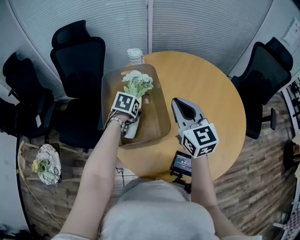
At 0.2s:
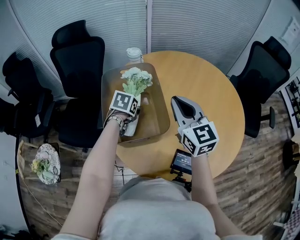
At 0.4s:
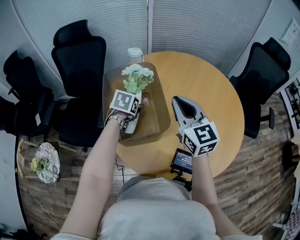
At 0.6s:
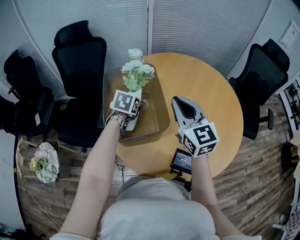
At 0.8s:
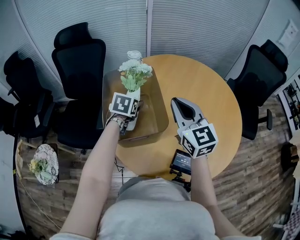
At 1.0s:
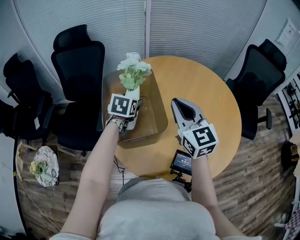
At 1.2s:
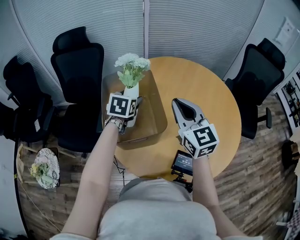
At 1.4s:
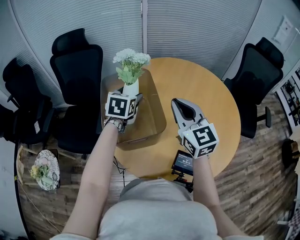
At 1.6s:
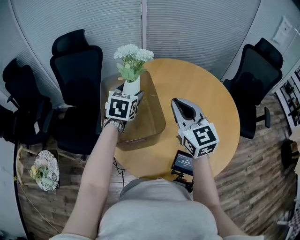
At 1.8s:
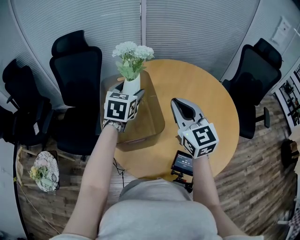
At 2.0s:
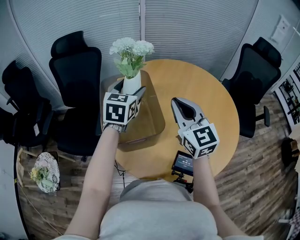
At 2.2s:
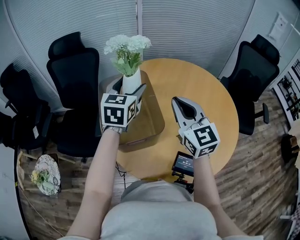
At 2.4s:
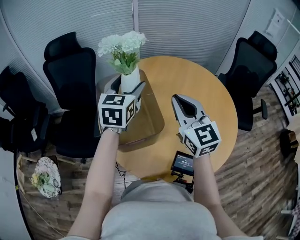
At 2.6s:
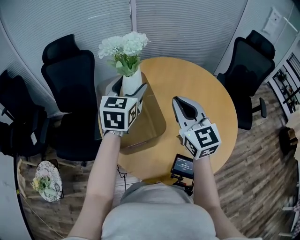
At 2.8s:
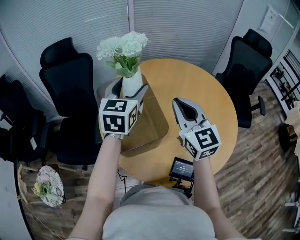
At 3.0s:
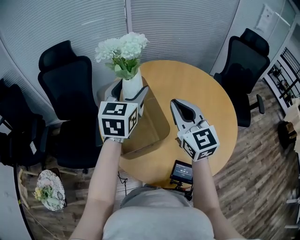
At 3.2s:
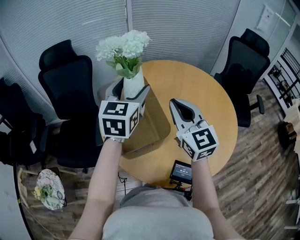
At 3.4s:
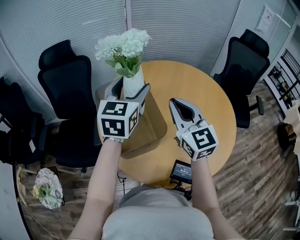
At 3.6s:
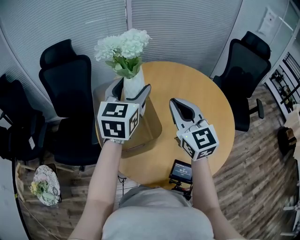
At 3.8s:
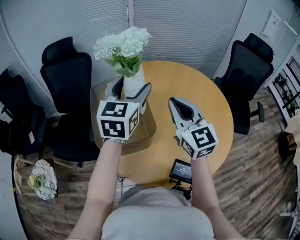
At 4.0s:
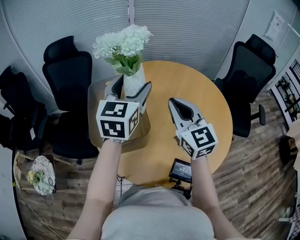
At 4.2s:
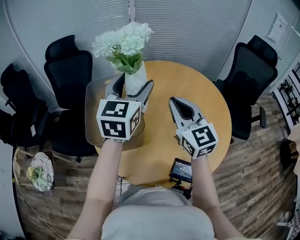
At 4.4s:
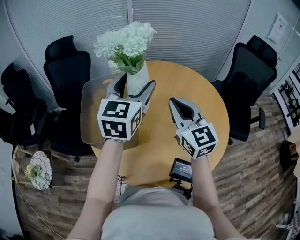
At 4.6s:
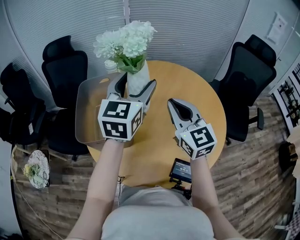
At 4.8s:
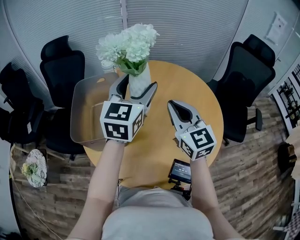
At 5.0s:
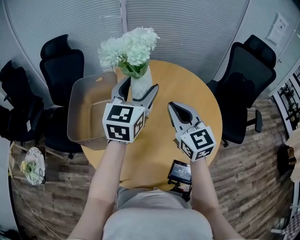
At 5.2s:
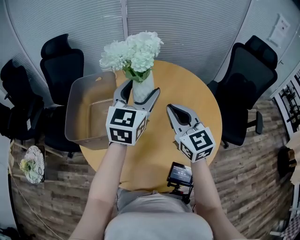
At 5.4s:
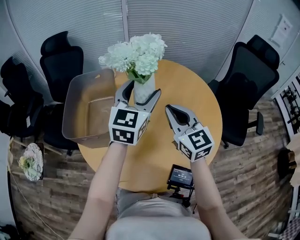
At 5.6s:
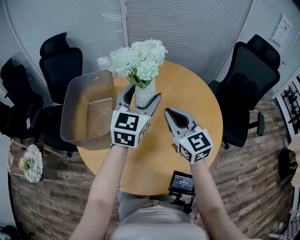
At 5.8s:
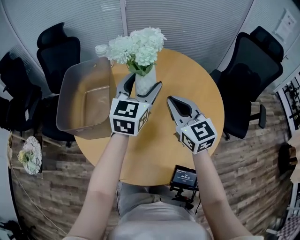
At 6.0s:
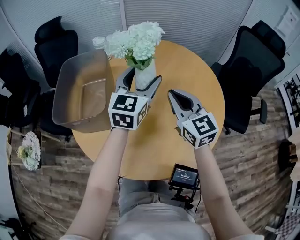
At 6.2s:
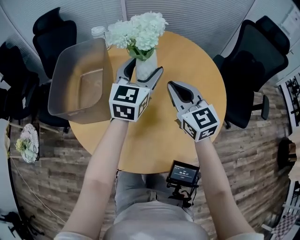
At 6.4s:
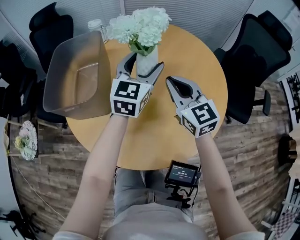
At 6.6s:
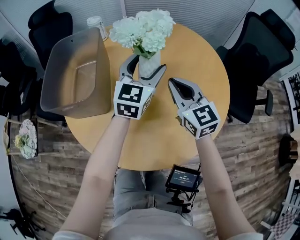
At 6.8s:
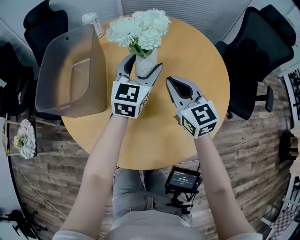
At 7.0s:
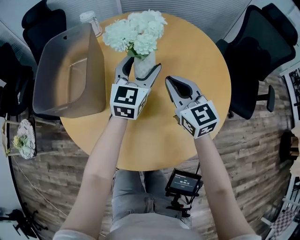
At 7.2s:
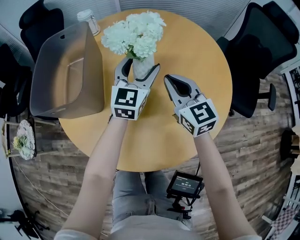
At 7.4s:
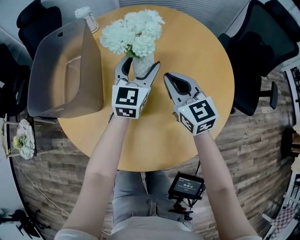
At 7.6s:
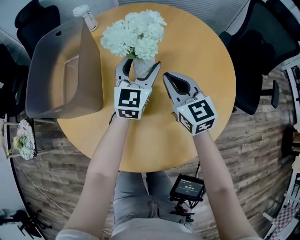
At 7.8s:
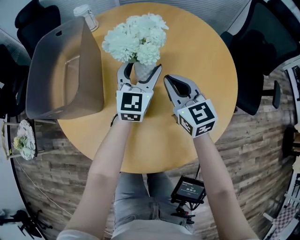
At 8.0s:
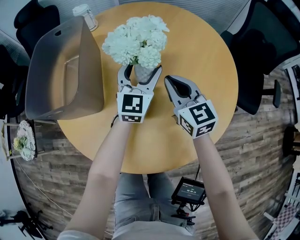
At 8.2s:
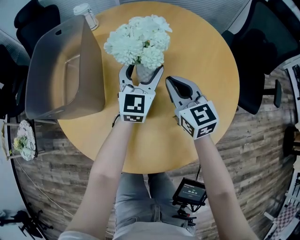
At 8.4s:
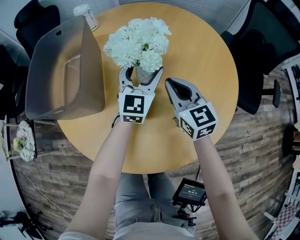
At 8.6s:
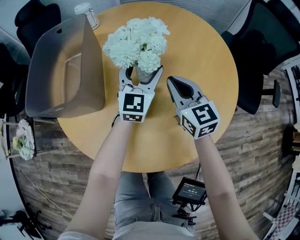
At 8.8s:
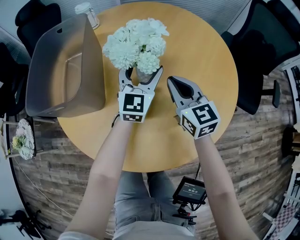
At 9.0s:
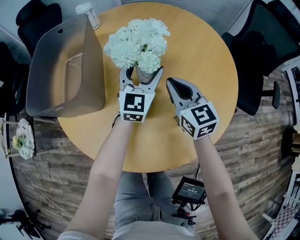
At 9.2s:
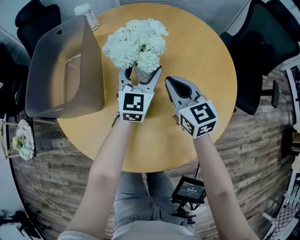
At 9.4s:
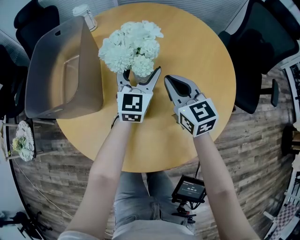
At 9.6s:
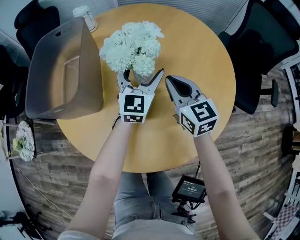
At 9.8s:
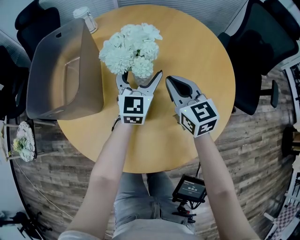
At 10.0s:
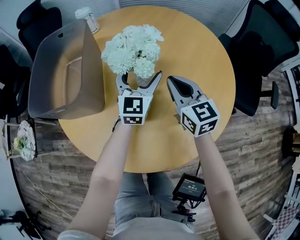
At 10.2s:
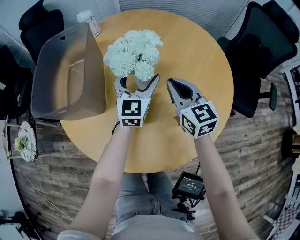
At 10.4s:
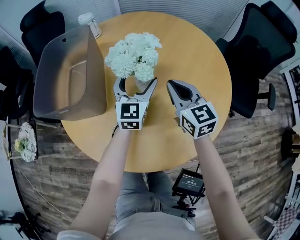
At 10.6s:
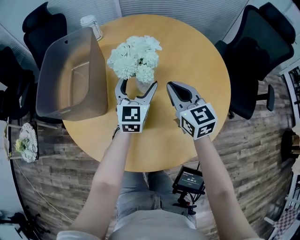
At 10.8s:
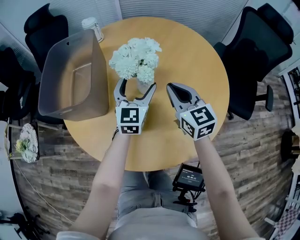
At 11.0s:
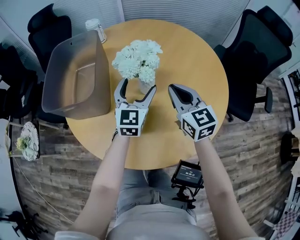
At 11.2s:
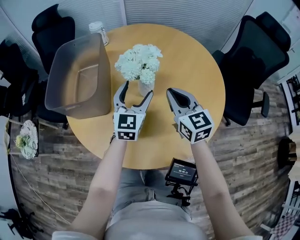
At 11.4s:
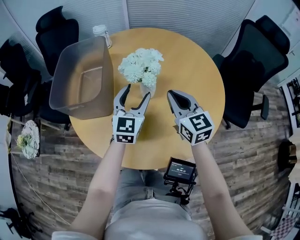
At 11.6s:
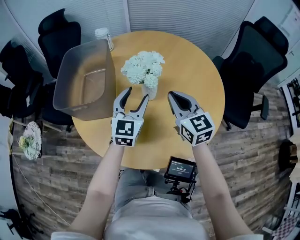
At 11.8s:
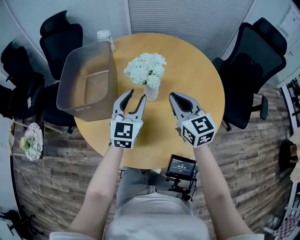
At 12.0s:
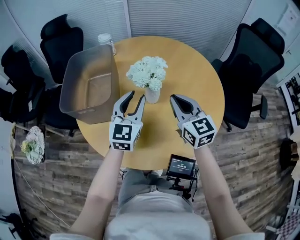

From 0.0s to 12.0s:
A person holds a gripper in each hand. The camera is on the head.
From 0.0s to 1.6s: The left gripper heads upward, covering roughly 15 cm, and tilts its fingers about 30 degrees upward.
From 1.6s to 3.0s: The left gripper shifts some 10 cm upward, and changes its angle by roughly 20 degrees.
From 3.0s to 4.4s: Both grippers travel together to the right, approximately 10 cm.
From 4.4s to 6.0s: Both grippers move to the right and downward, approximately 15 cm.
From 6.0s to 7.6s: The two grippers go roughly 15 cm downward.
From 7.6s to 10.4s: The grippers stay close to where they were, moving slightly.
From 10.4s to 12.0s: The right gripper goes approximately 10 cm upward and backward, while the left gripper is displaced upward, backward and to the left by roughly 15 cm, and closes up.

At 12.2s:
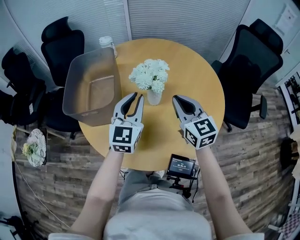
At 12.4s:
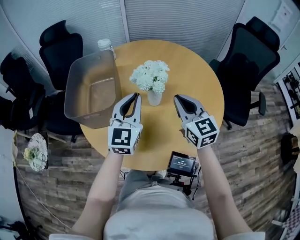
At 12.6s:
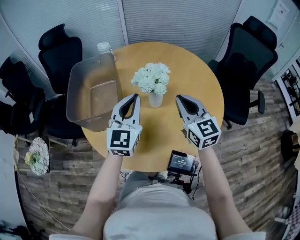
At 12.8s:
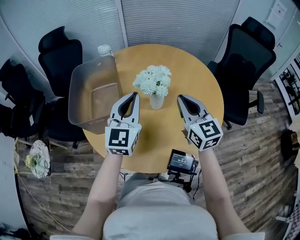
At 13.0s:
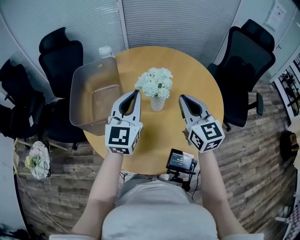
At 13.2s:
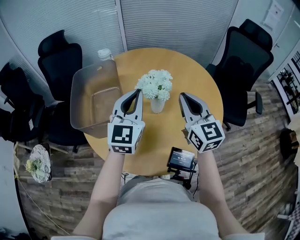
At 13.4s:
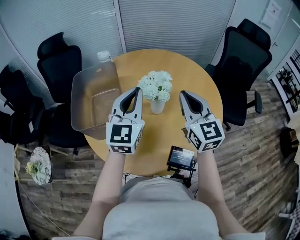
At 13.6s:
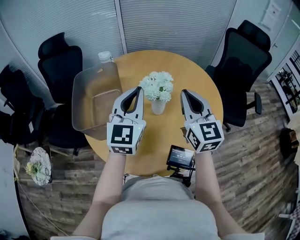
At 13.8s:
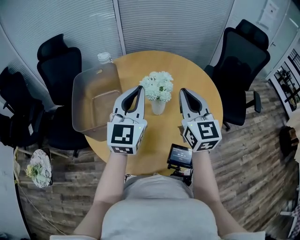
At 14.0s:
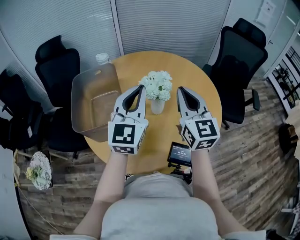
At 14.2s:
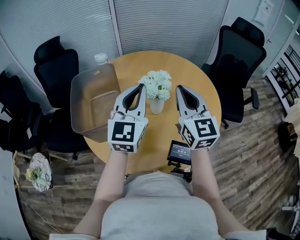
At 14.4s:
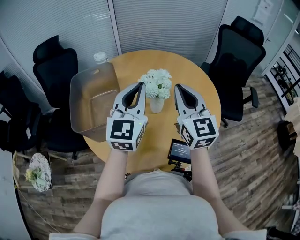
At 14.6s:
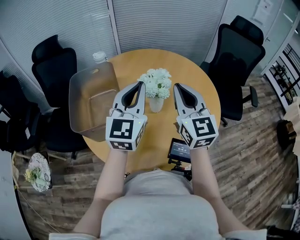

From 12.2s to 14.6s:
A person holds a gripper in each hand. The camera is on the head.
From 12.2s to 13.4s: Both grippers travel together upward, roughly 10 cm.
From 13.4s to 14.6s: The grippers stay close to where they were, moving slightly.

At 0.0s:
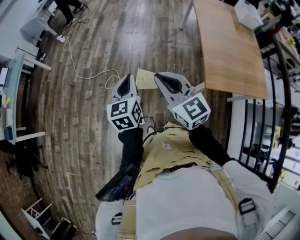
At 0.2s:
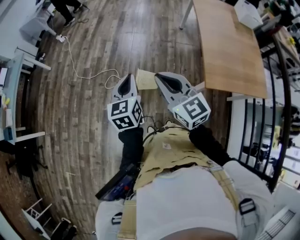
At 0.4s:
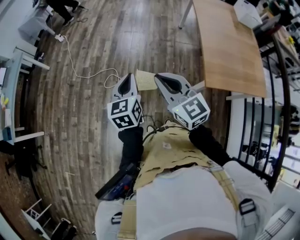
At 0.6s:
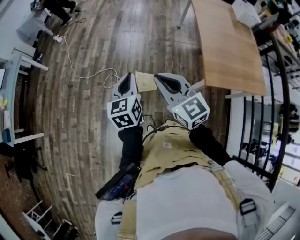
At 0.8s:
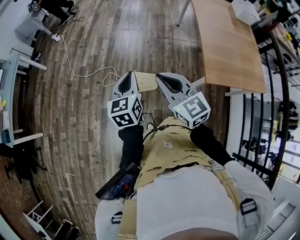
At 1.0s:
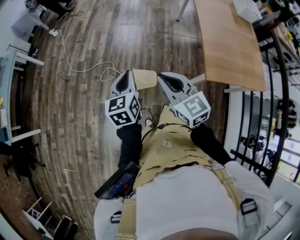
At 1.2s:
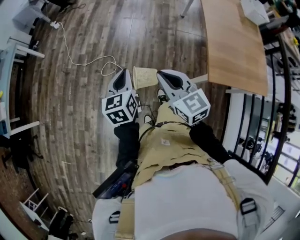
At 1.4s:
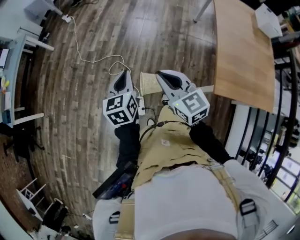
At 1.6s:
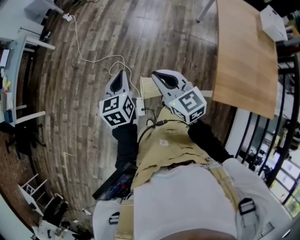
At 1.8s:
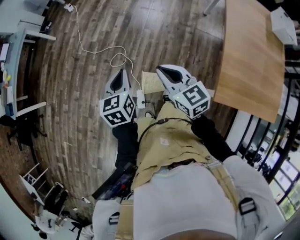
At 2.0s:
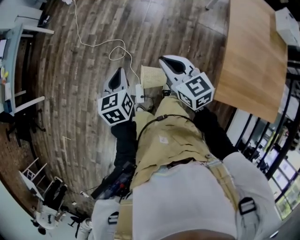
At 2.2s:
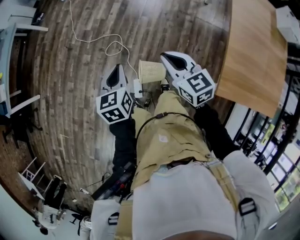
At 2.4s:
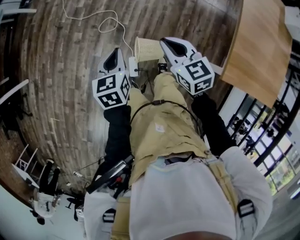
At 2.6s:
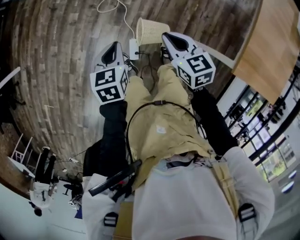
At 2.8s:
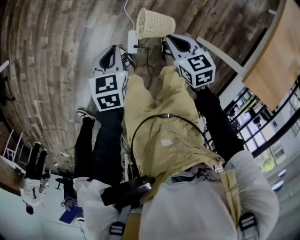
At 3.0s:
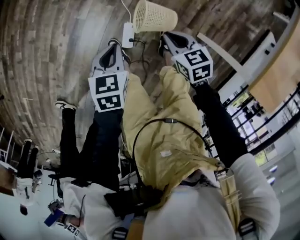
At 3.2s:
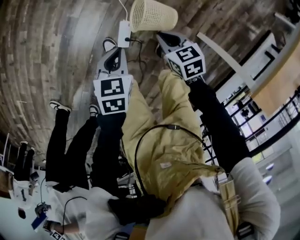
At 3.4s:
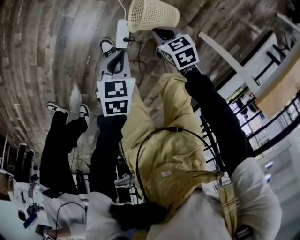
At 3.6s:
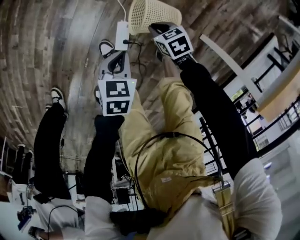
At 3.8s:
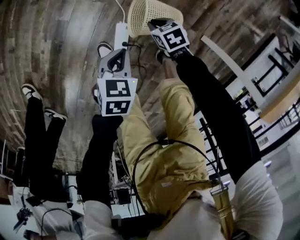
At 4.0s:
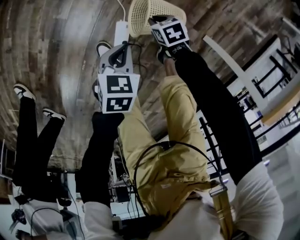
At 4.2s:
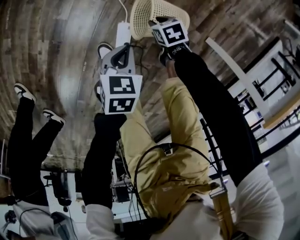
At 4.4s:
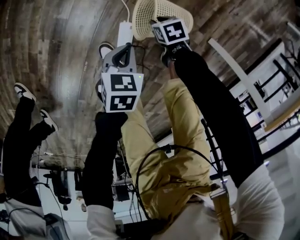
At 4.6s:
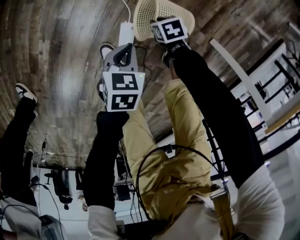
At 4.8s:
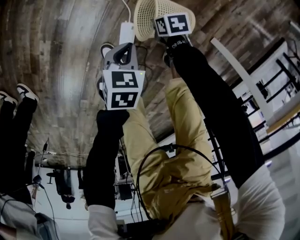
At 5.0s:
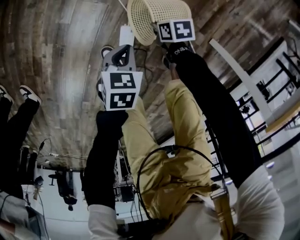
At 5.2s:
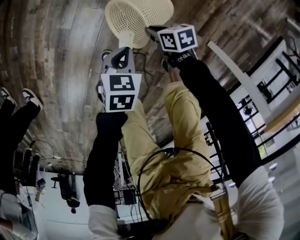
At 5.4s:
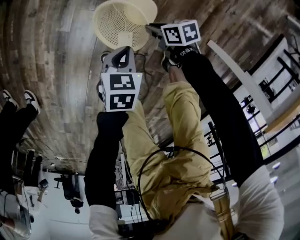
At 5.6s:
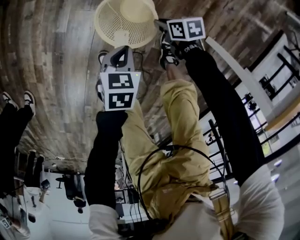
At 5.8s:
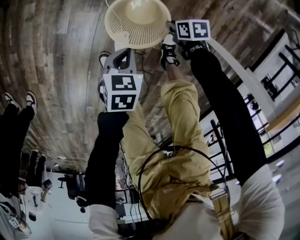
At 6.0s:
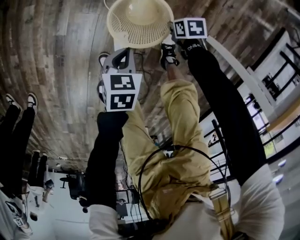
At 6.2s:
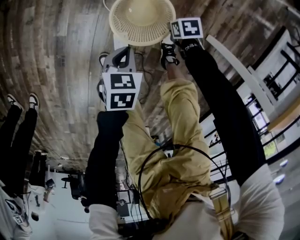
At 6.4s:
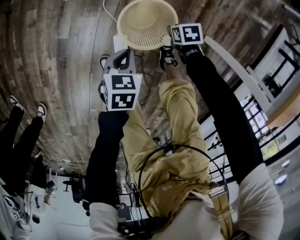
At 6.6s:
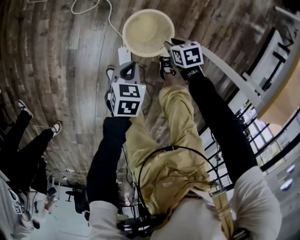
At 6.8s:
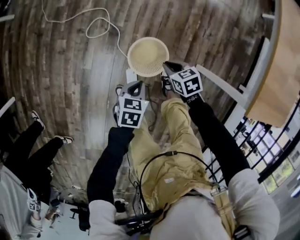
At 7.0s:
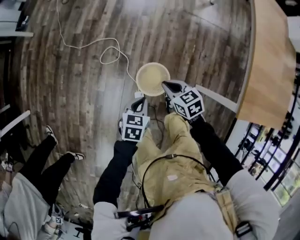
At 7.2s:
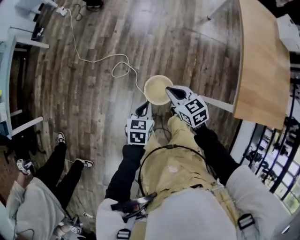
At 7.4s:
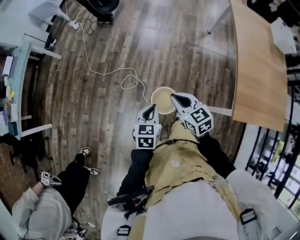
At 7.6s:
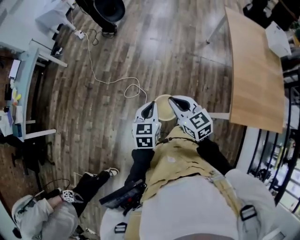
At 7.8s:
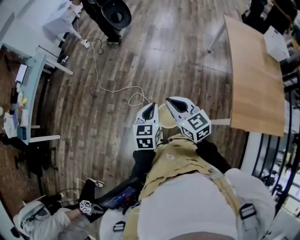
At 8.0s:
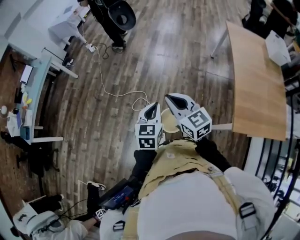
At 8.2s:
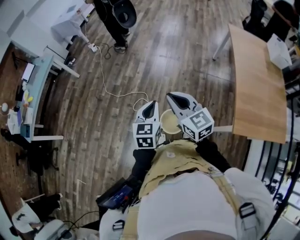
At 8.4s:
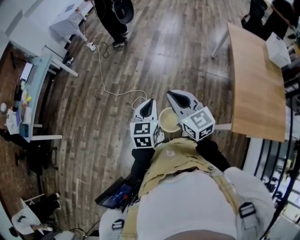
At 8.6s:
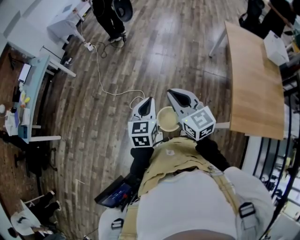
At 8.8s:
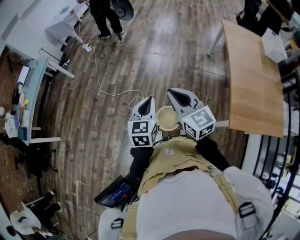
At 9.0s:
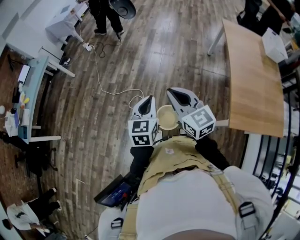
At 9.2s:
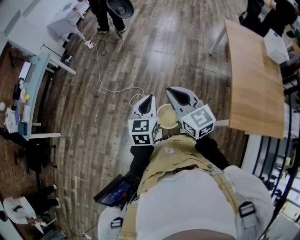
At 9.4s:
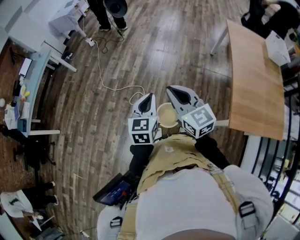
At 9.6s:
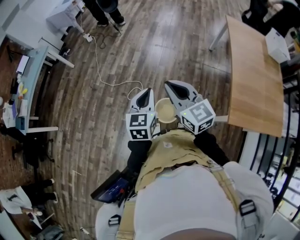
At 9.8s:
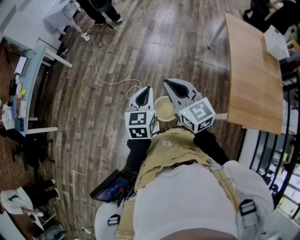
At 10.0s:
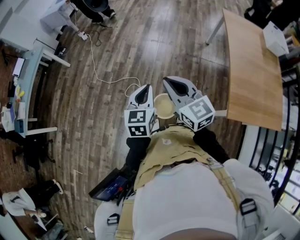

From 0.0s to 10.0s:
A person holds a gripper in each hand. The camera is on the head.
From 0.0s to 1.4s: The right gripper goes some 10 cm downward and forward, while the left gripper is displaced downward by approximately 5 cm.
From 1.4s to 2.8s: Both grippers move downward, some 40 cm. The left gripper rotates about 30 degrees. The right gripper swivels approximately 30 degrees.
From 2.8s to 4.2s: The two grippers go about 35 cm downward. The right gripper rotates about 30 degrees.
From 4.2s to 5.8s: The right gripper changes place by about 15 cm, and changes its angle by about 30 degrees. Meanwhile the left gripper shifts by roughly 5 cm.
From 5.8s to 7.2s: The grippers both shift upward by approximately 50 cm. The left gripper turns by approximately 20 degrees, while the right gripper changes its angle by roughly 50 degrees, and opens and closes again.
From 7.2s to 8.6s: Both grippers move upward, some 30 cm. The right gripper swivels about 30 degrees. Meanwhile the left gripper changes its angle by roughly 30 degrees.
From 8.6s to 10.0s: There are only small adjustments of the grippers.
